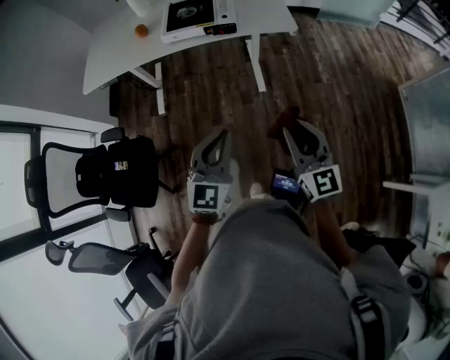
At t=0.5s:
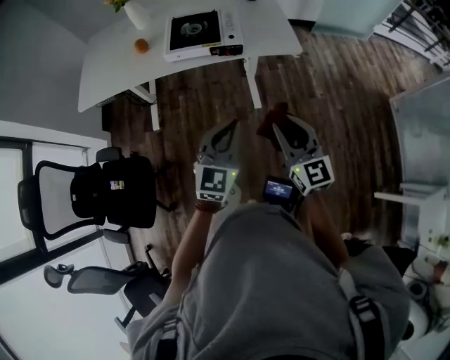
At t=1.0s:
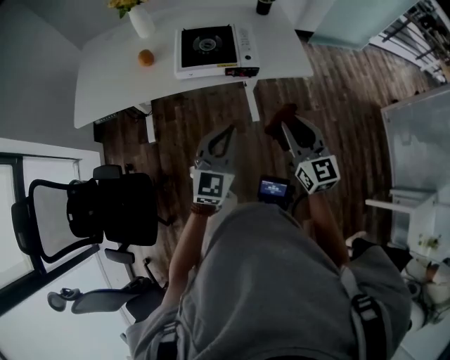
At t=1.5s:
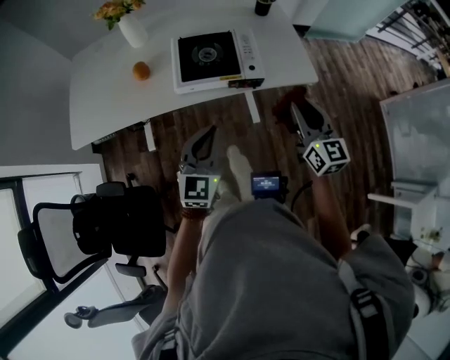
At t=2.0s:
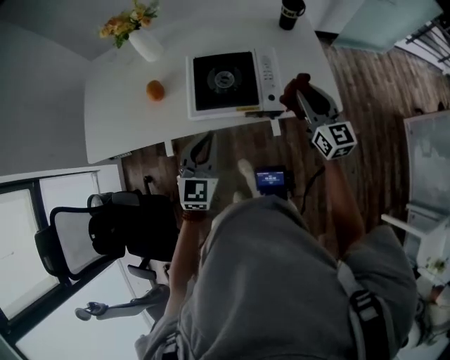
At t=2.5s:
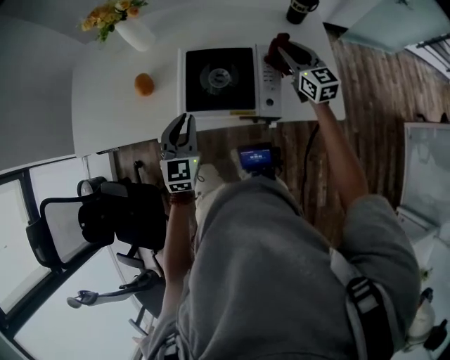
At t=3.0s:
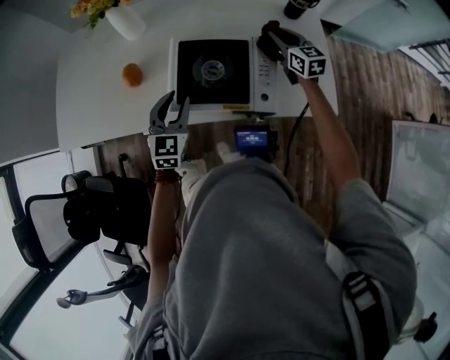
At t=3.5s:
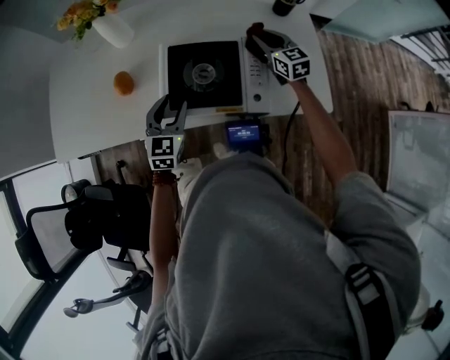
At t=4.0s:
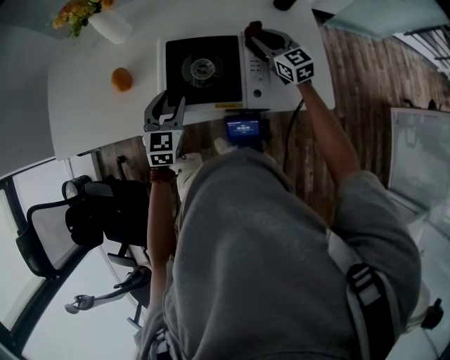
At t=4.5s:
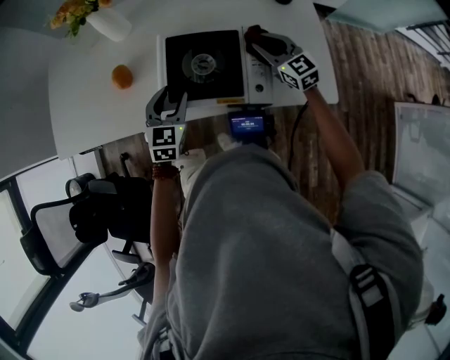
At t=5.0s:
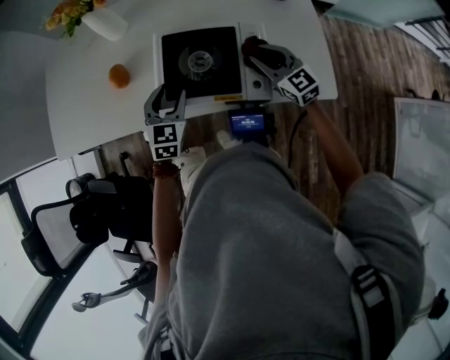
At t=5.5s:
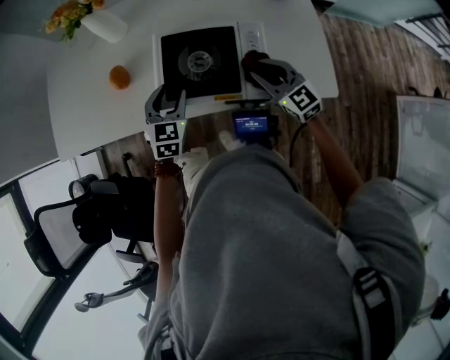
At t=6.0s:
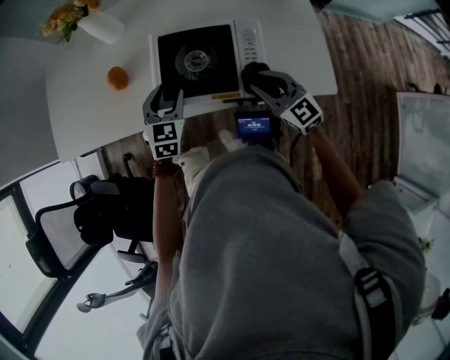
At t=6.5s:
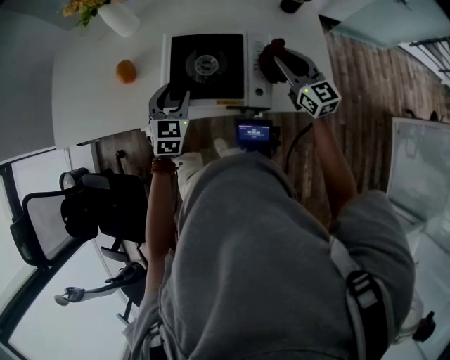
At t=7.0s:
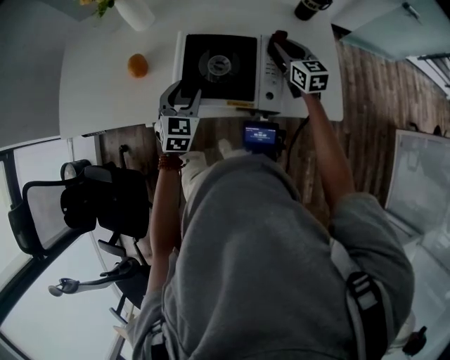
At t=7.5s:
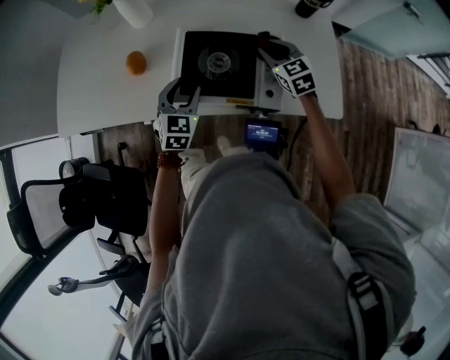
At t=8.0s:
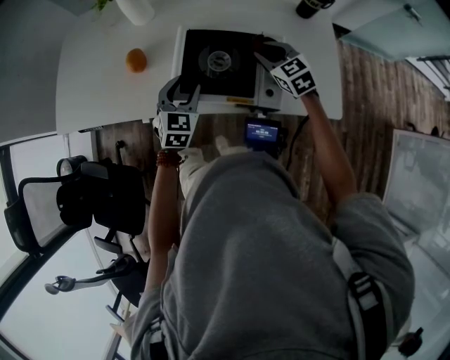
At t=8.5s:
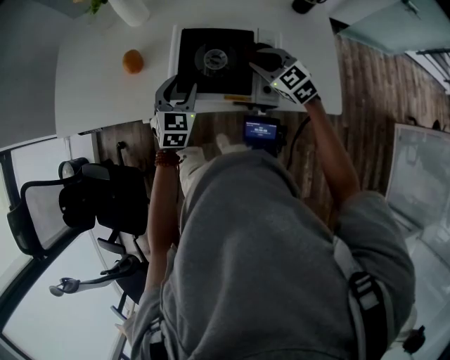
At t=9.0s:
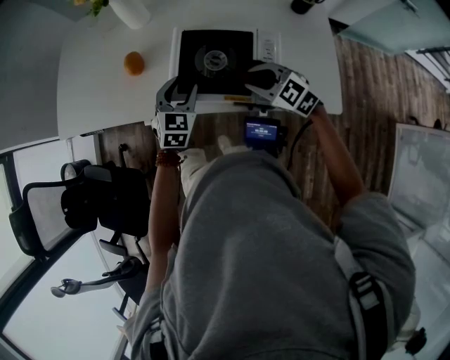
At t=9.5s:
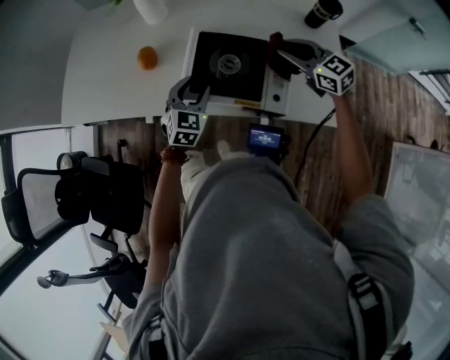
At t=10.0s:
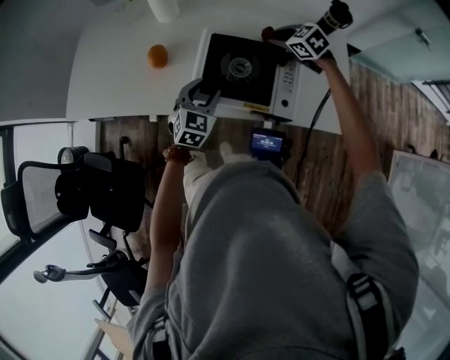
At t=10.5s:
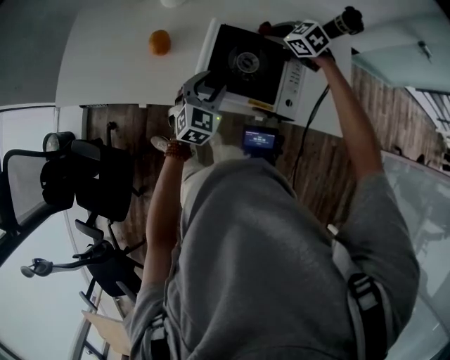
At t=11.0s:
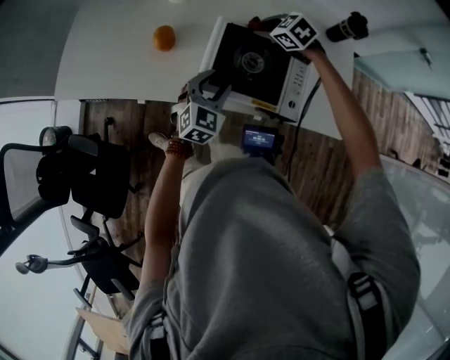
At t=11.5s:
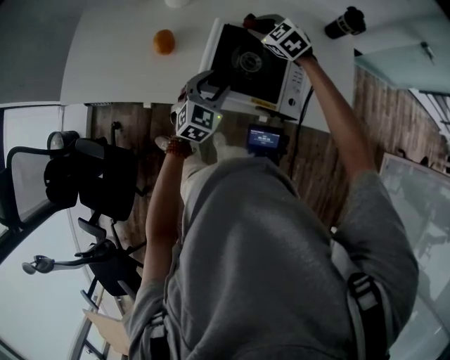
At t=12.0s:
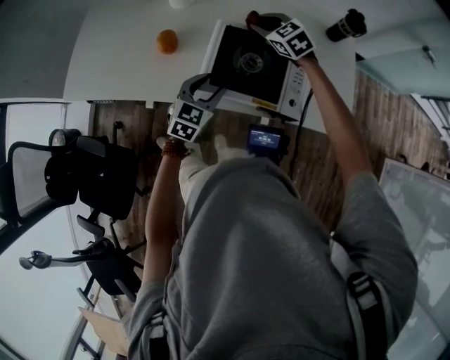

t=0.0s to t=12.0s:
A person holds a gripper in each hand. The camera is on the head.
t=0.0s to t=2.0s: The pair of grippers is taken forward, some 50 cm.
t=2.0s to t=4.0s: Both grippers travel together forward and downward, about 20 cm. The right gripper swivels about 20 degrees. The left gripper opens up.
t=4.0s to t=6.0s: The right gripper goes some 15 cm backward.
t=6.0s to t=8.0s: The right gripper moves forward, approximately 15 cm.
t=8.0s to t=10.0s: The right gripper heads forward, covering about 10 cm, and turns by approximately 20 degrees.
t=10.0s to t=12.0s: The right gripper is displaced to the left by roughly 10 cm.

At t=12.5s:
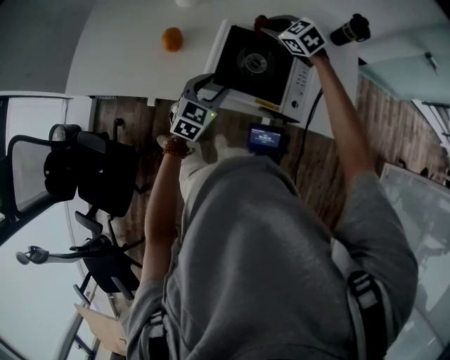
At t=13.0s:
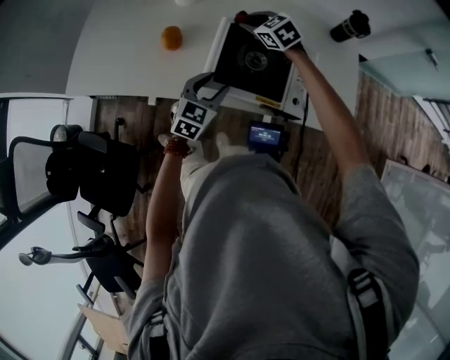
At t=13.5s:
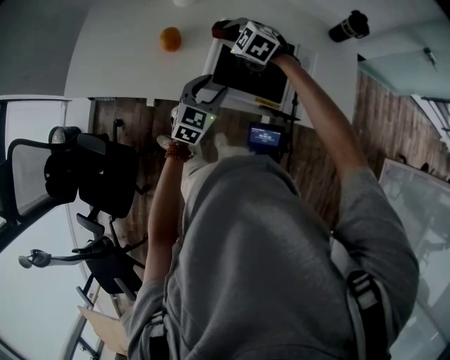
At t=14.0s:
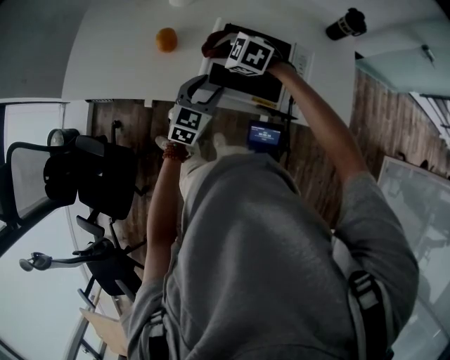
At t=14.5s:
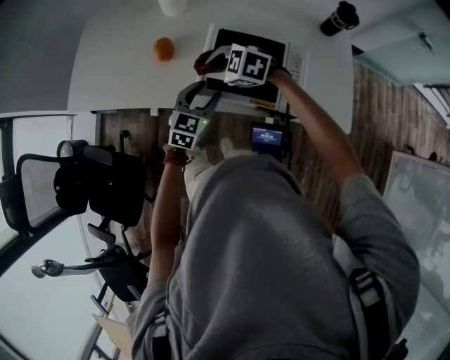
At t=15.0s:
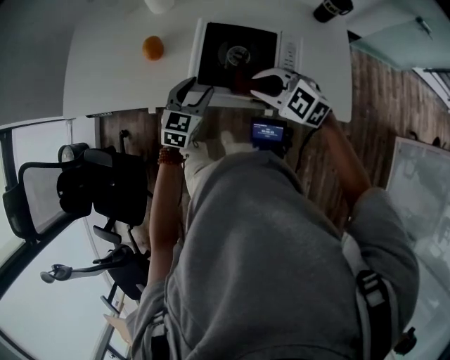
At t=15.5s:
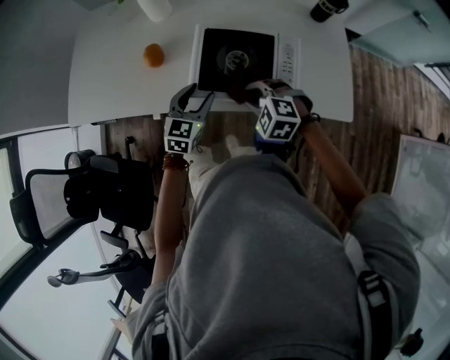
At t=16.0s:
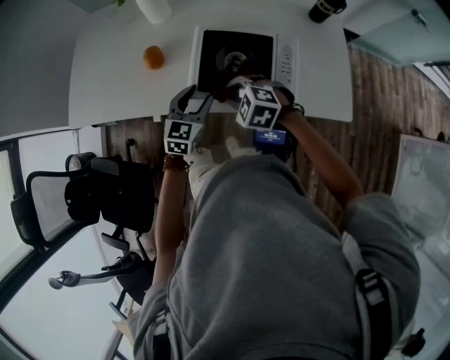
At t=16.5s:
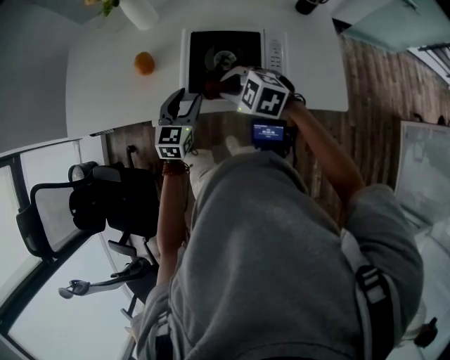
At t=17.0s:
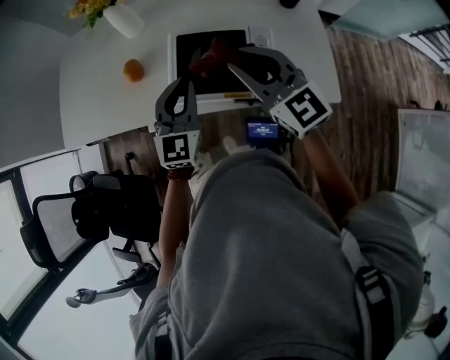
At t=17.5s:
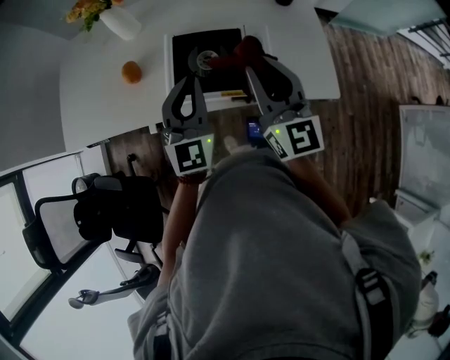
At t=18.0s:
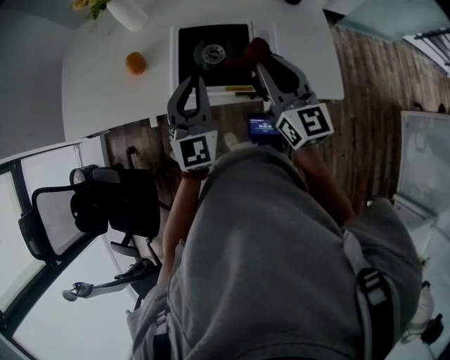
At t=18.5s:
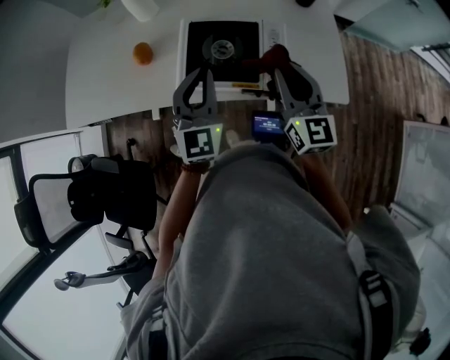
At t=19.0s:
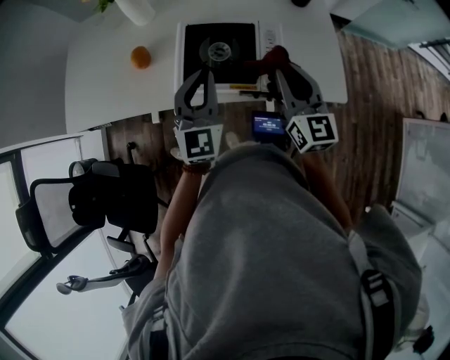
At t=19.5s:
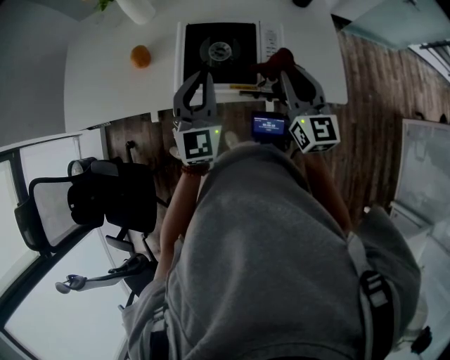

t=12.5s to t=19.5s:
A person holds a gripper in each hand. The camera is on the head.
t=12.5s to t=14.5s: The right gripper travels to the left and backward by some 20 cm, and changes its angle by about 30 degrees.
t=14.5s to t=16.0s: The right gripper travels backward and to the right by roughly 10 cm.
t=16.0s to t=17.5s: The left gripper shifts some 20 cm upward, rotates some 30 degrees, and closes. The right gripper heads upward and to the right, covering roughly 25 cm, and angles its fingers upward, by roughly 60 degrees.
t=17.5s to t=19.5s: The right gripper goes some 10 cm downward and to the right.

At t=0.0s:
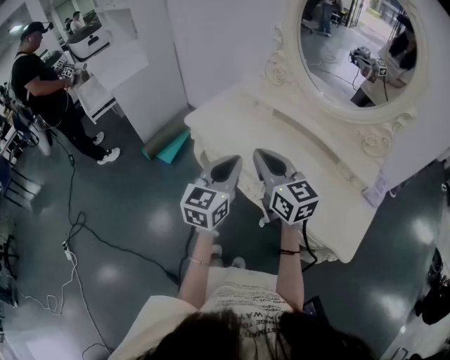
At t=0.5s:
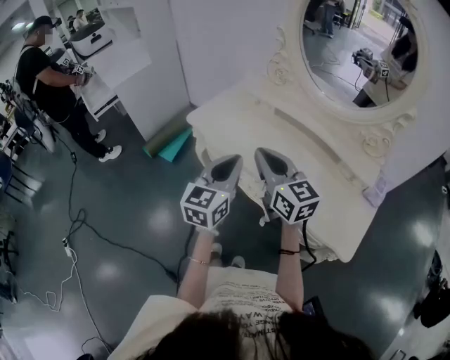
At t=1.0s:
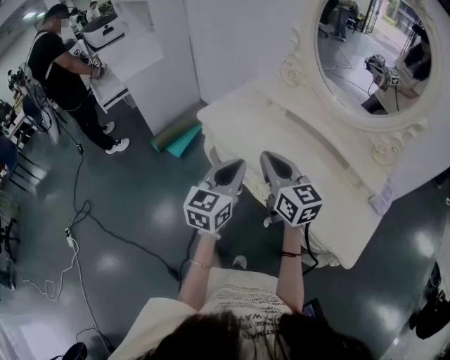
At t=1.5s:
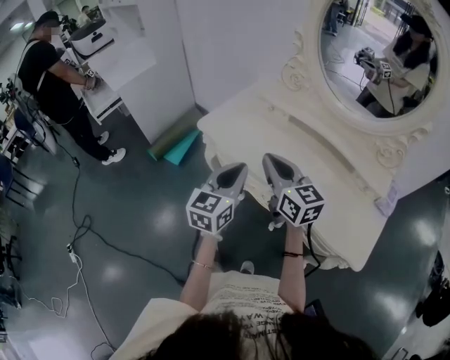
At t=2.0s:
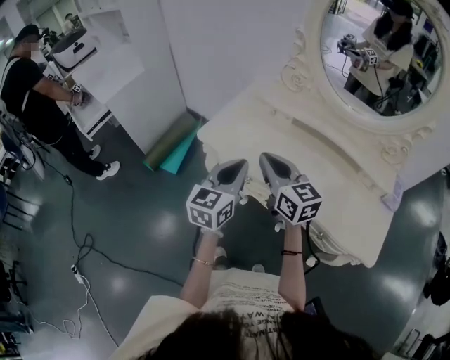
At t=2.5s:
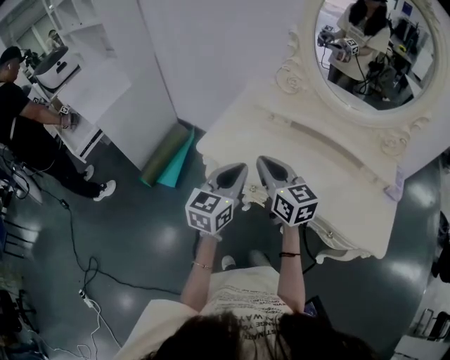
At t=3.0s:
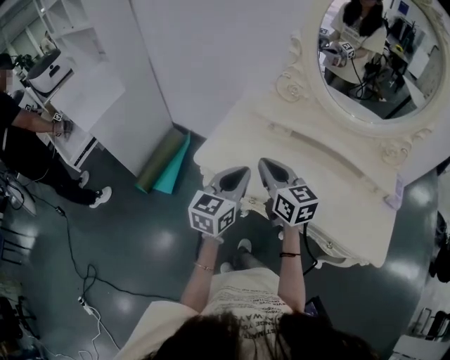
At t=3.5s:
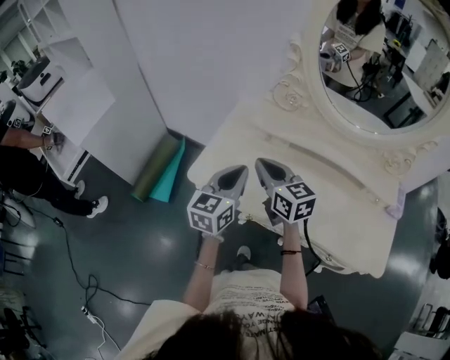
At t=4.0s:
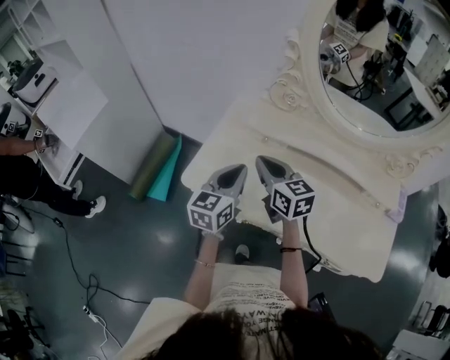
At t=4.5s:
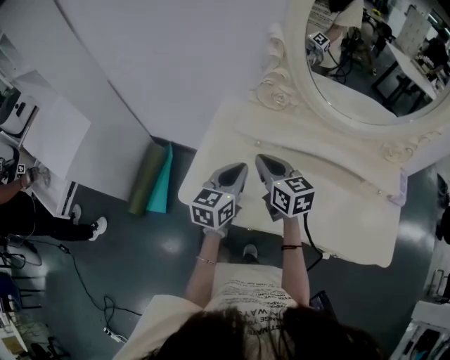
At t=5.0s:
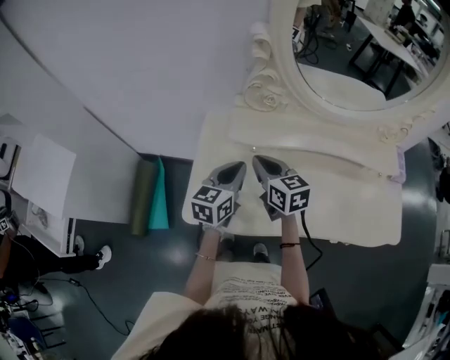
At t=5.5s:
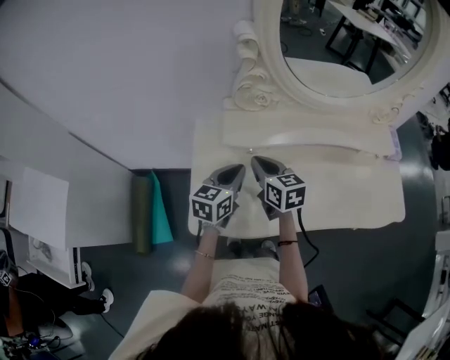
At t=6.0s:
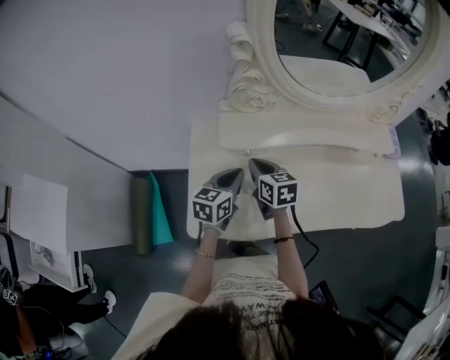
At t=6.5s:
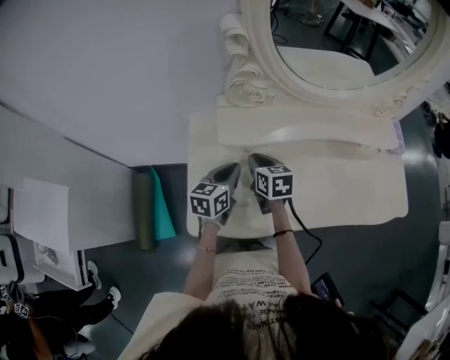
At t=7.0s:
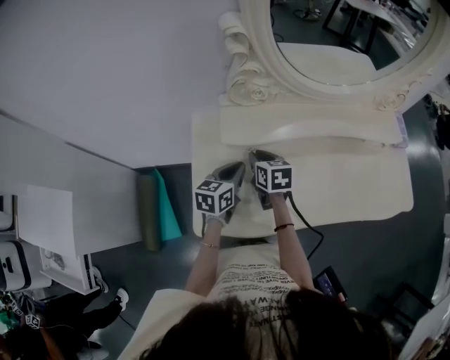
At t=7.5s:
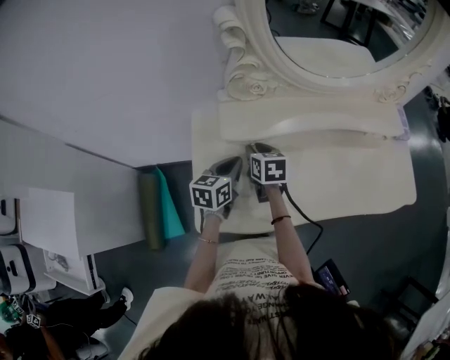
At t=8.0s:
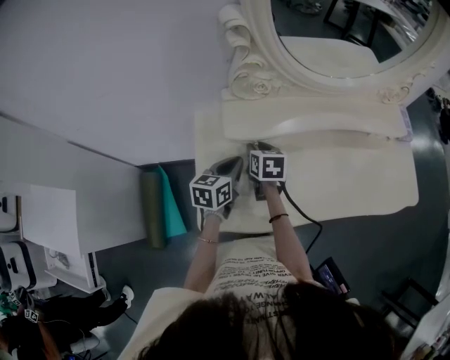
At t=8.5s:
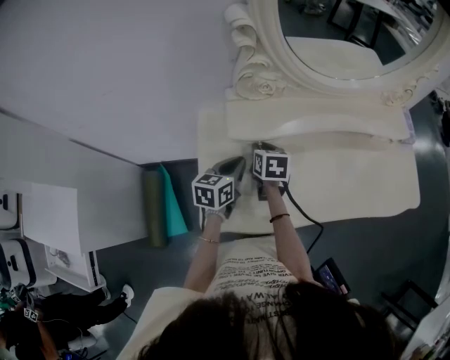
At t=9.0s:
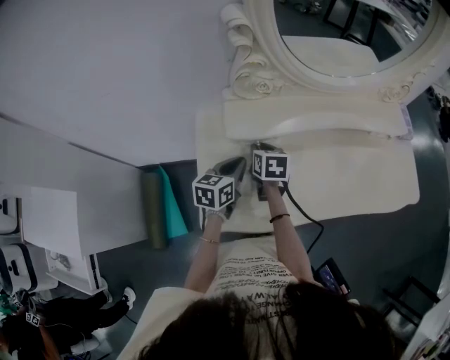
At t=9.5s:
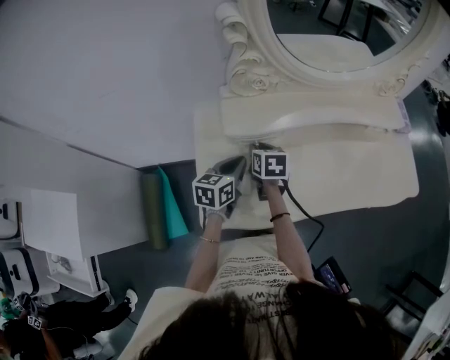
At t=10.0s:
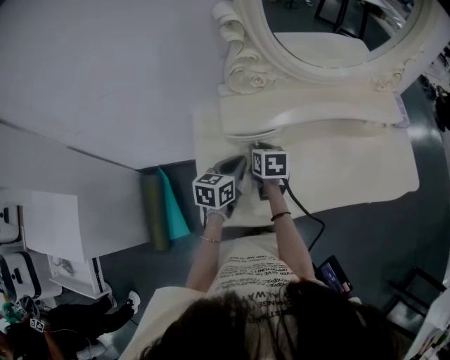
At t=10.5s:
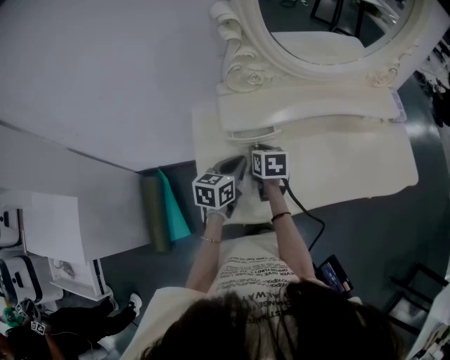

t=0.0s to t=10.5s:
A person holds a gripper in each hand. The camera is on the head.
t=0.0s to t=2.0s: Both grippers travel together forward and to the left, approximately 15 cm.
t=2.0s to t=4.0s: Both grippers travel together forward, about 20 cm.
t=4.0s to t=6.5s: The right gripper moves downward, roughly 15 cm, and rotates roughly 40 degrees. Meanwhile the left gripper shifts by approximately 20 cm, and turns by some 30 degrees.
t=6.5s to t=10.5s: The grippers stay close to where they were, moving slightly.
